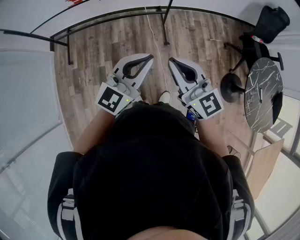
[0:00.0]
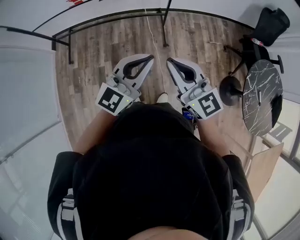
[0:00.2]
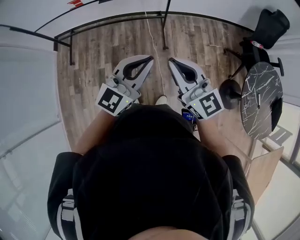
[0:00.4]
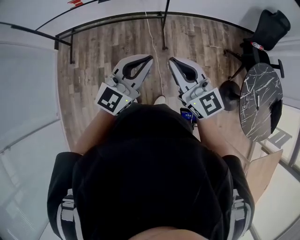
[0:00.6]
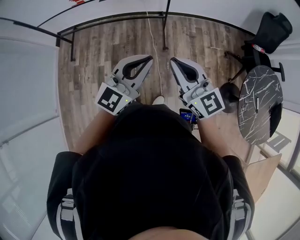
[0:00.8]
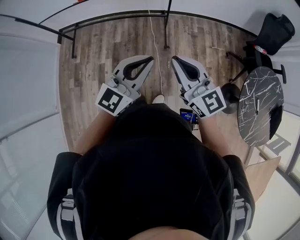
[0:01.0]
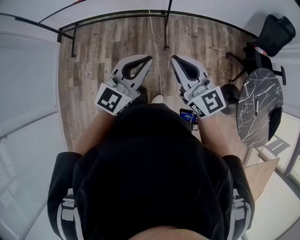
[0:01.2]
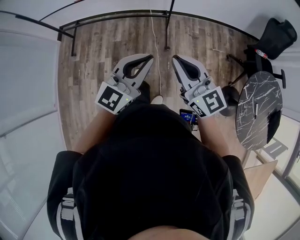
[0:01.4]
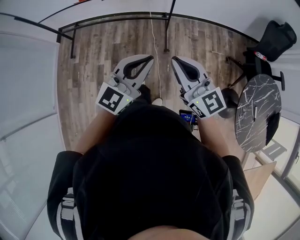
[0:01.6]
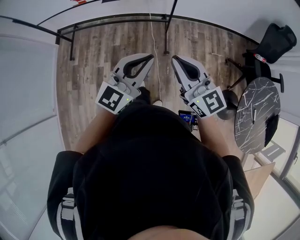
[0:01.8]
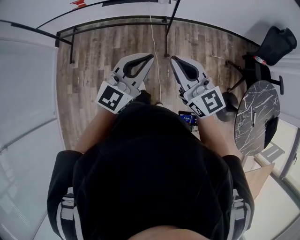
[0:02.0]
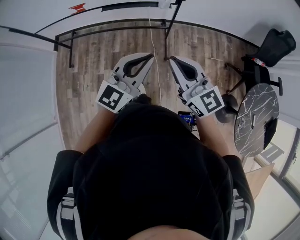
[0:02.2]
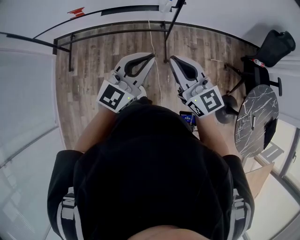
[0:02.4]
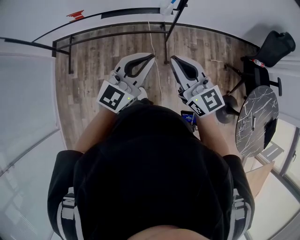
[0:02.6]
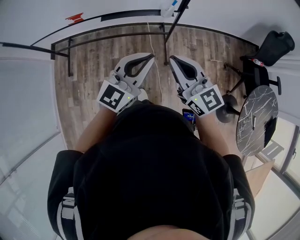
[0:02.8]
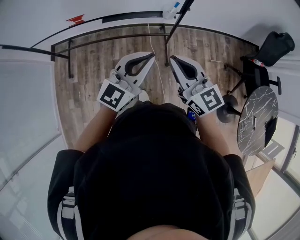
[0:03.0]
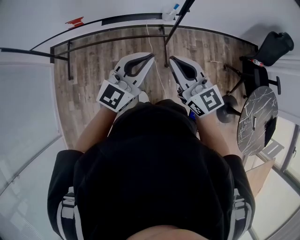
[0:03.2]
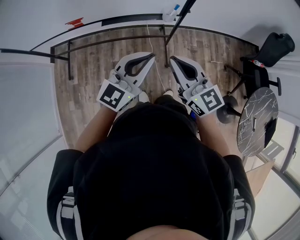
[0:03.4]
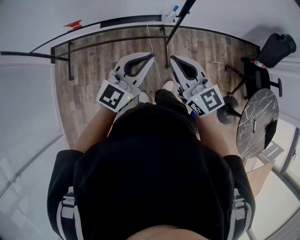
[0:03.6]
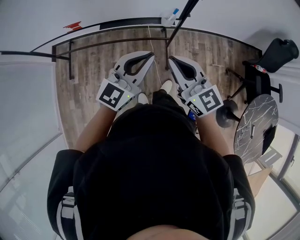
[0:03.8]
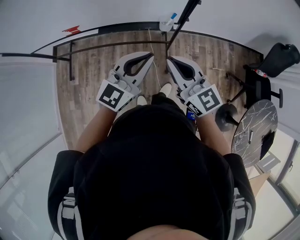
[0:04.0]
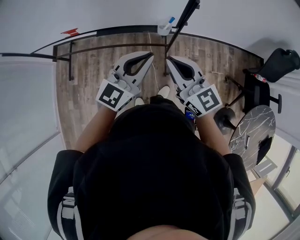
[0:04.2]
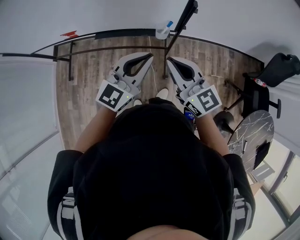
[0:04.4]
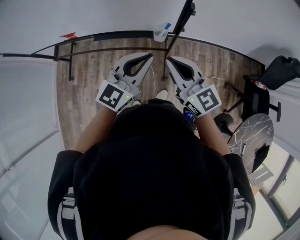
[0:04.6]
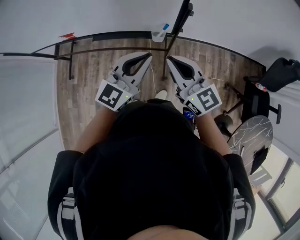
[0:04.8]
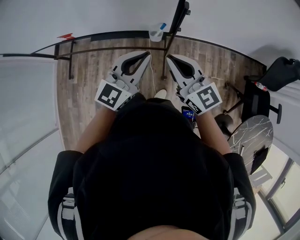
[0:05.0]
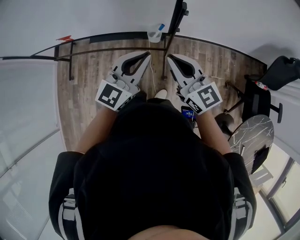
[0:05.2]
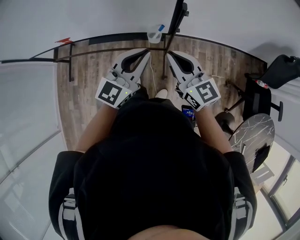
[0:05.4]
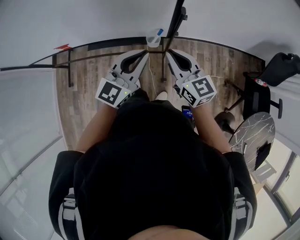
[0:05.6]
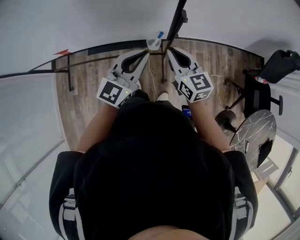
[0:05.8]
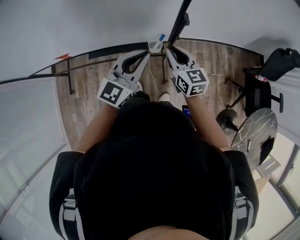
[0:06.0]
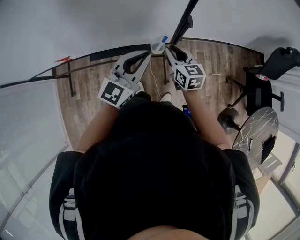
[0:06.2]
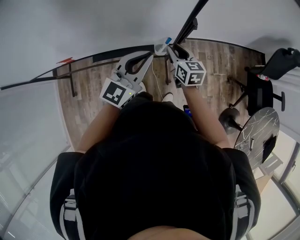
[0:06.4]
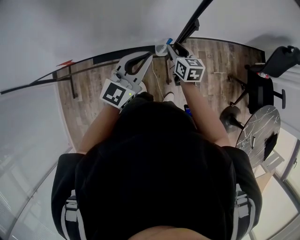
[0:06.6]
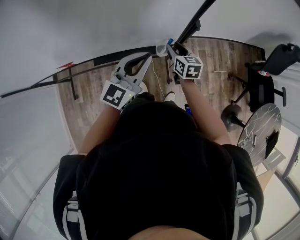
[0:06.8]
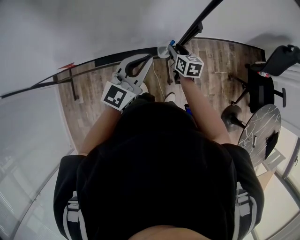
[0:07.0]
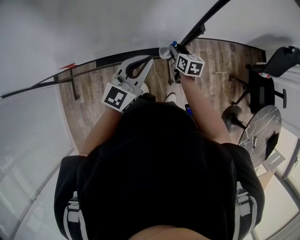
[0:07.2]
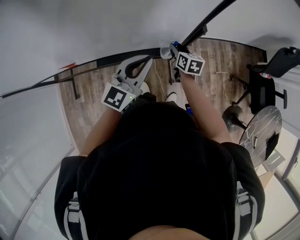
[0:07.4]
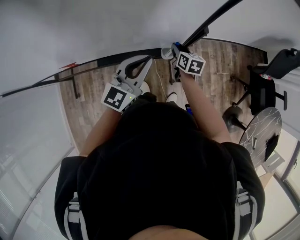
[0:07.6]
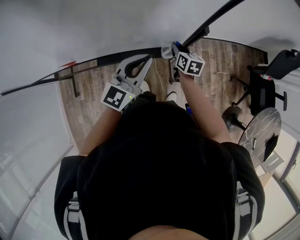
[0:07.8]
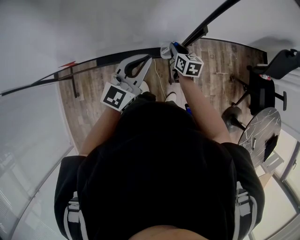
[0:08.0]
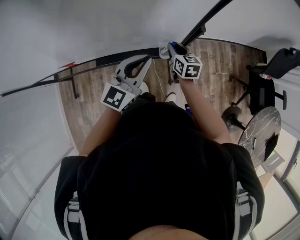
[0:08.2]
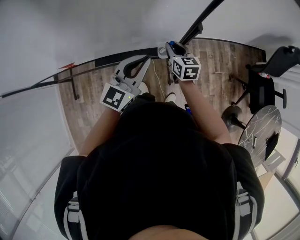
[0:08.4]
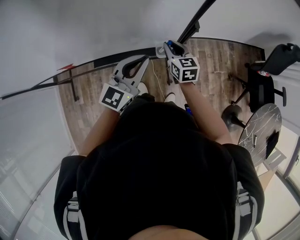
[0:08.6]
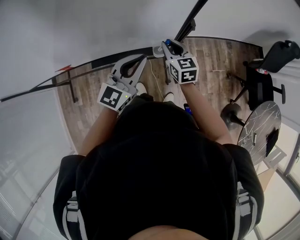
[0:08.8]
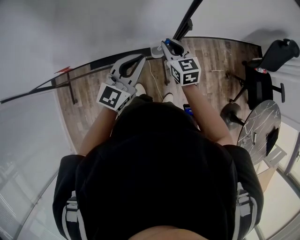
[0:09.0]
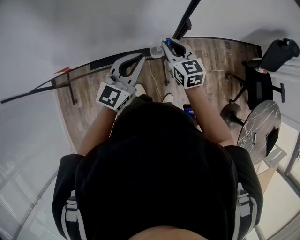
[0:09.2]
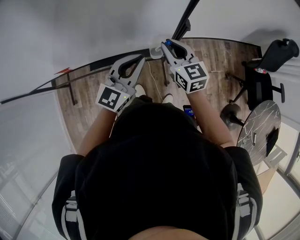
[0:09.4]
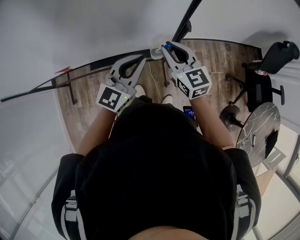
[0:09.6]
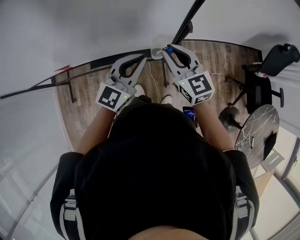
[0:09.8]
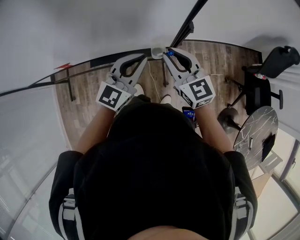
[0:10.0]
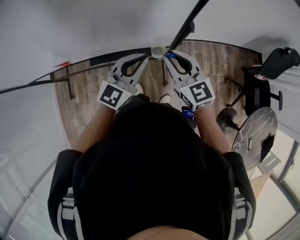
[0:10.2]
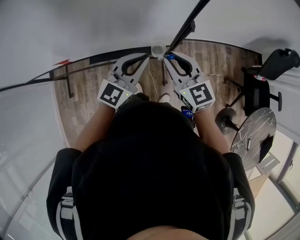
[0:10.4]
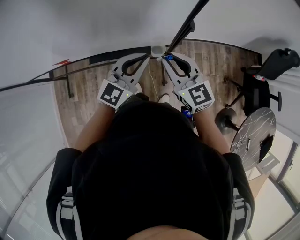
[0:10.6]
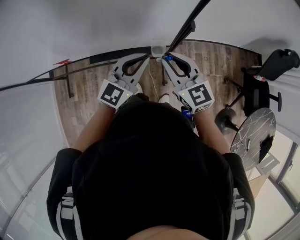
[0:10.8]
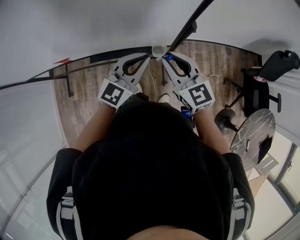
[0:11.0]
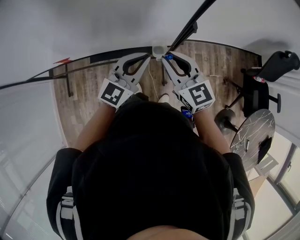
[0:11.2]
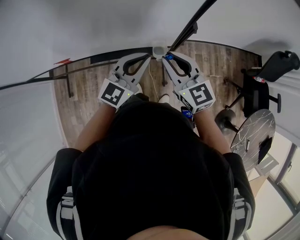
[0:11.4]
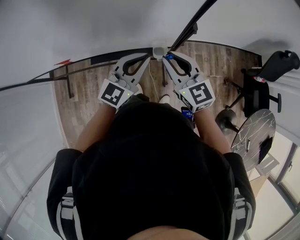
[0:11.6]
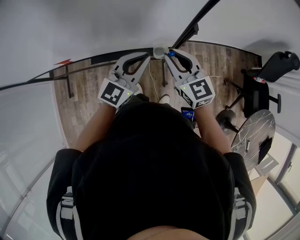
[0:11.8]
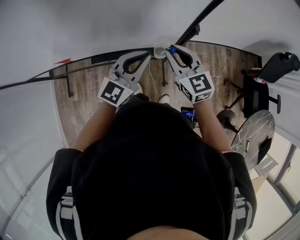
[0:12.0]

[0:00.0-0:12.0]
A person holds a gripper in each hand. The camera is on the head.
0:00.0 to 0:01.6: Both grippers travel together to the right, approximately 10 cm.
0:01.6 to 0:03.0: The two grippers go roughly 25 cm forward and to the left.
0:03.0 to 0:04.4: The two grippers go approximately 15 cm forward and to the right.
0:04.4 to 0:06.0: The left gripper shifts roughly 10 cm forward. Meanwhile the right gripper moves forward and downward, some 20 cm, and swivels about 20 degrees.
0:06.0 to 0:07.6: The left gripper heads to the left, covering about 5 cm. The right gripper travels downward and forward by roughly 15 cm, and swivels some 30 degrees.
0:07.6 to 0:09.0: The right gripper is displaced upward by some 10 cm, and swivels some 30 degrees.
0:09.0 to 0:10.4: The right gripper goes some 10 cm upward and backward.
0:10.4 to 0:12.0: The grippers make only small movements.

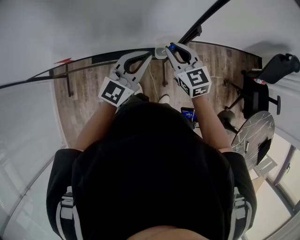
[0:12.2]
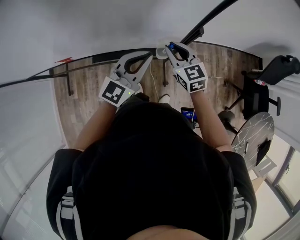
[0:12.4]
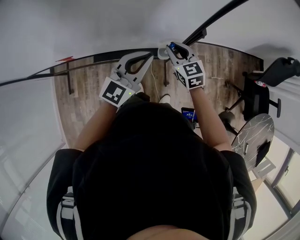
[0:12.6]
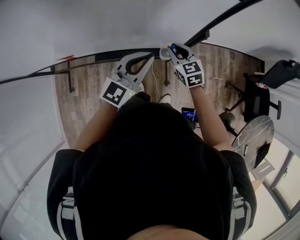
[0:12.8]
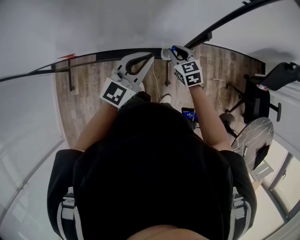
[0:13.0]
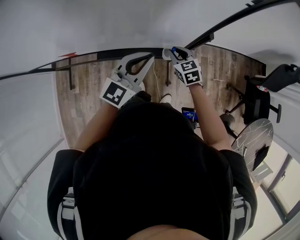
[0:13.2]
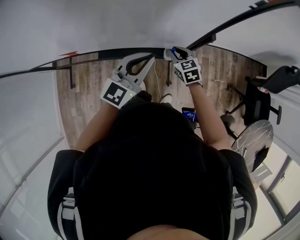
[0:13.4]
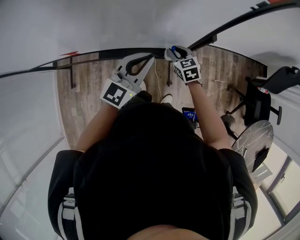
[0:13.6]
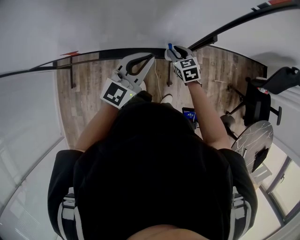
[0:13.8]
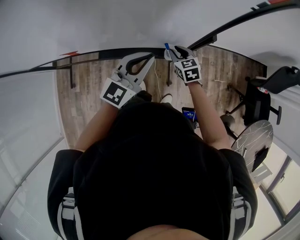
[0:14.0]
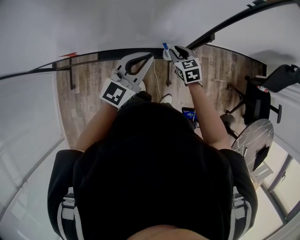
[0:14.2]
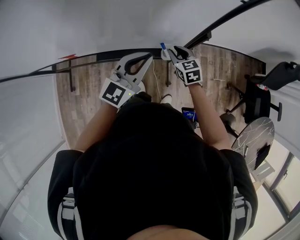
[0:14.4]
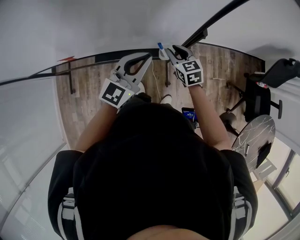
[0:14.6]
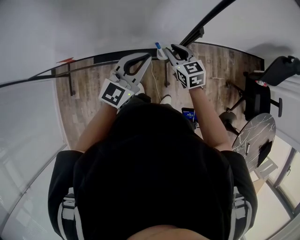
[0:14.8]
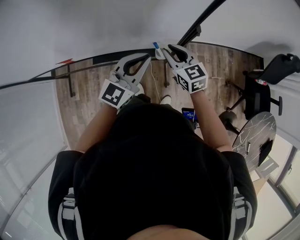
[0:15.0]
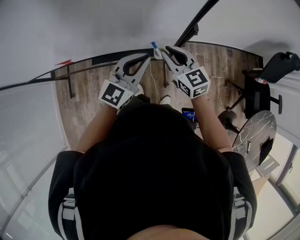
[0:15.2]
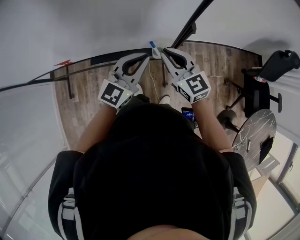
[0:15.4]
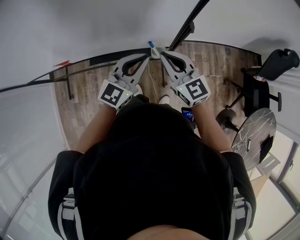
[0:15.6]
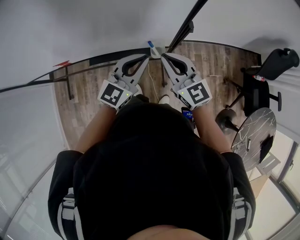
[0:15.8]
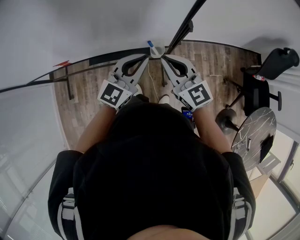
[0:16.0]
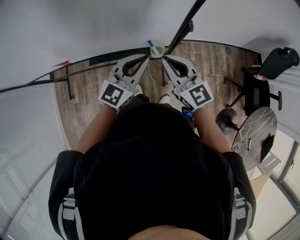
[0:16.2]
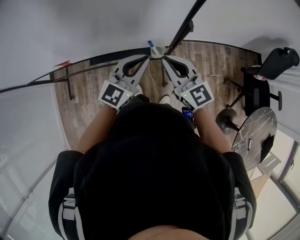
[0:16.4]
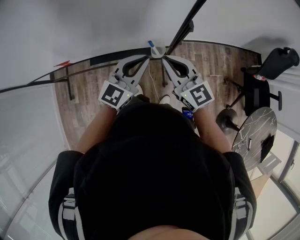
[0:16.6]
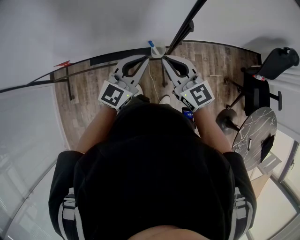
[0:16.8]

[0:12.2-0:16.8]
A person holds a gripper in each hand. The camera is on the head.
0:12.2 to 0:13.8: The right gripper heads downward, covering approximately 15 cm, and turns by some 20 degrees.
0:13.8 to 0:15.2: The right gripper heads upward, covering roughly 15 cm, and rotates roughly 20 degrees.
0:15.2 to 0:16.8: The right gripper ends up approximately 5 cm from where it was.

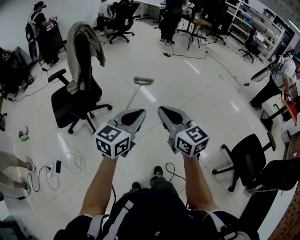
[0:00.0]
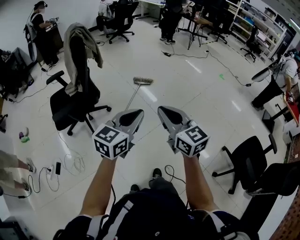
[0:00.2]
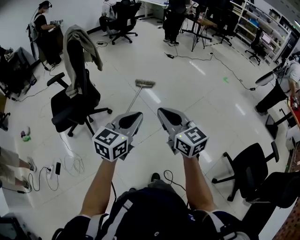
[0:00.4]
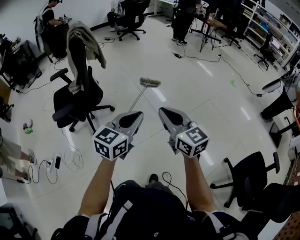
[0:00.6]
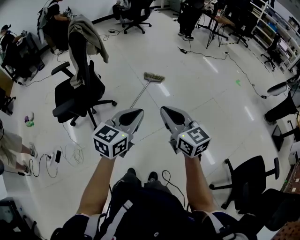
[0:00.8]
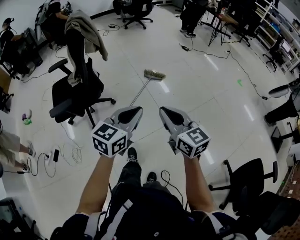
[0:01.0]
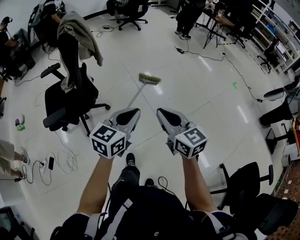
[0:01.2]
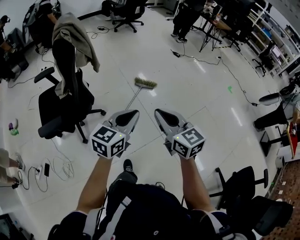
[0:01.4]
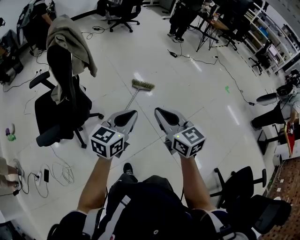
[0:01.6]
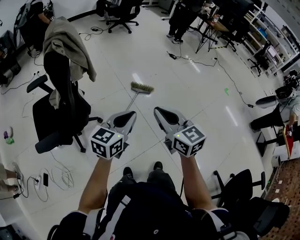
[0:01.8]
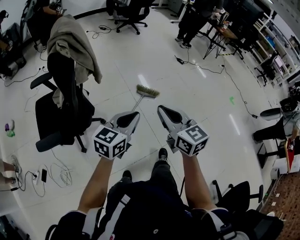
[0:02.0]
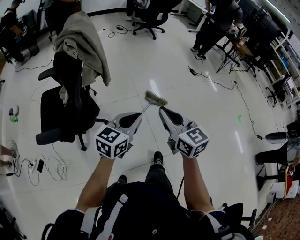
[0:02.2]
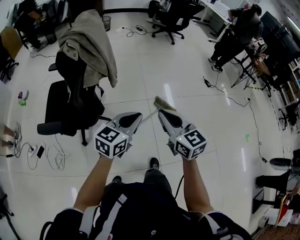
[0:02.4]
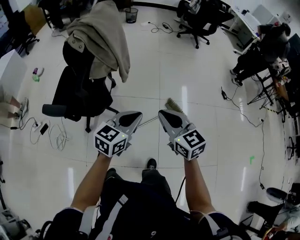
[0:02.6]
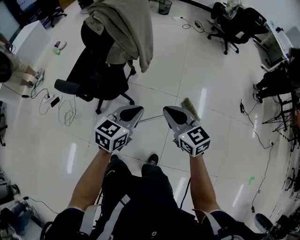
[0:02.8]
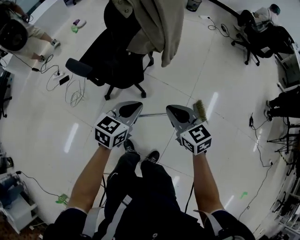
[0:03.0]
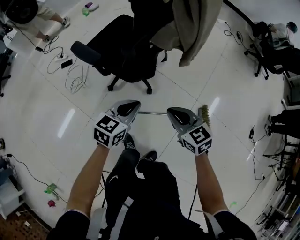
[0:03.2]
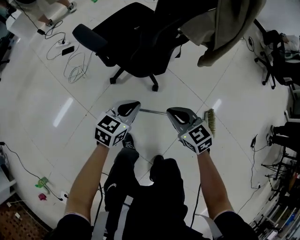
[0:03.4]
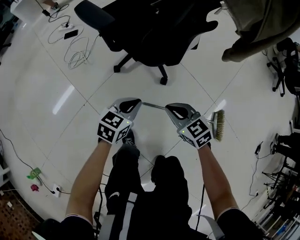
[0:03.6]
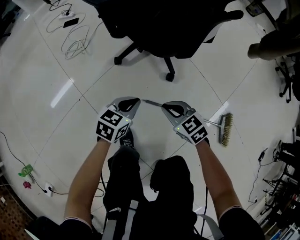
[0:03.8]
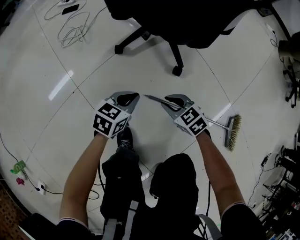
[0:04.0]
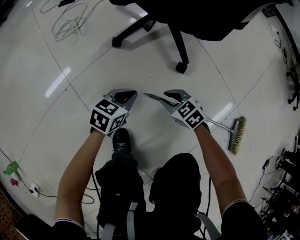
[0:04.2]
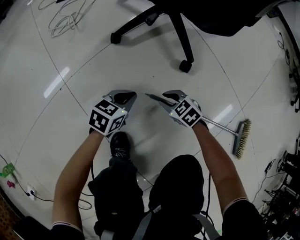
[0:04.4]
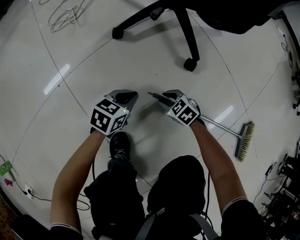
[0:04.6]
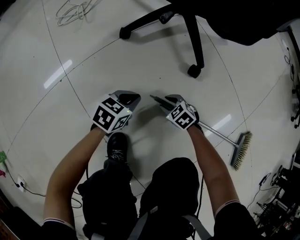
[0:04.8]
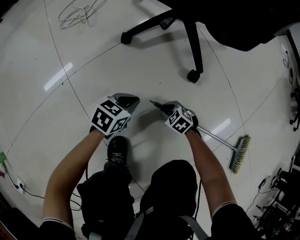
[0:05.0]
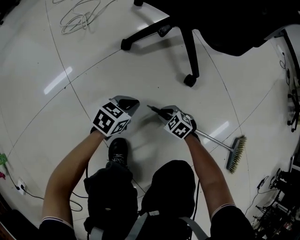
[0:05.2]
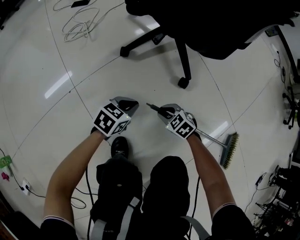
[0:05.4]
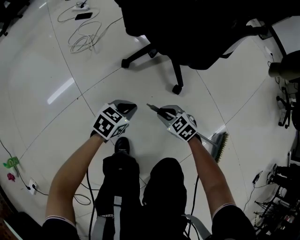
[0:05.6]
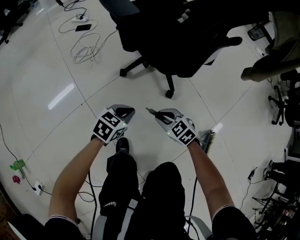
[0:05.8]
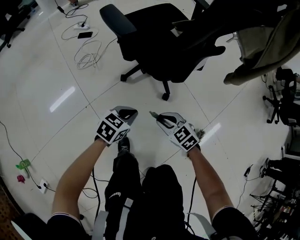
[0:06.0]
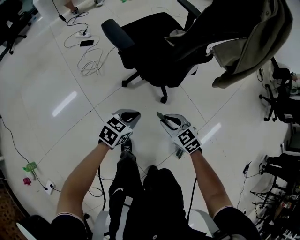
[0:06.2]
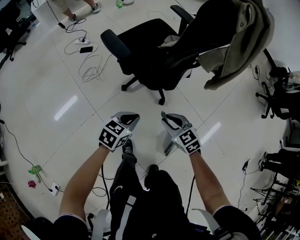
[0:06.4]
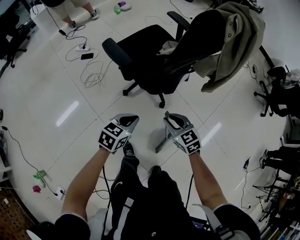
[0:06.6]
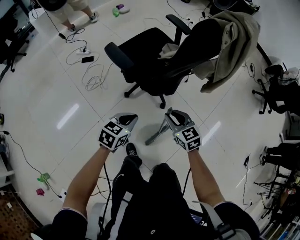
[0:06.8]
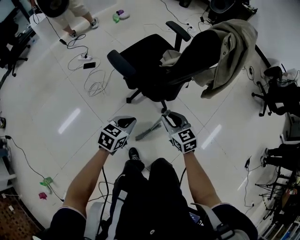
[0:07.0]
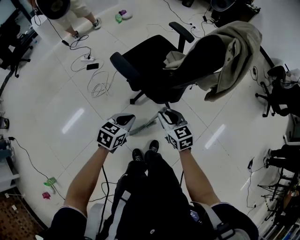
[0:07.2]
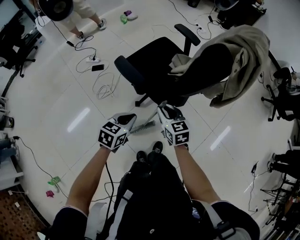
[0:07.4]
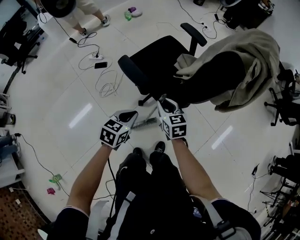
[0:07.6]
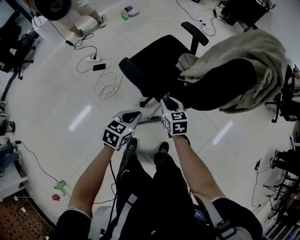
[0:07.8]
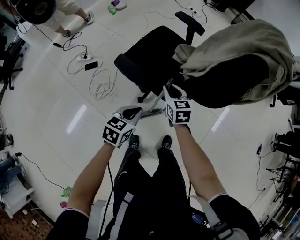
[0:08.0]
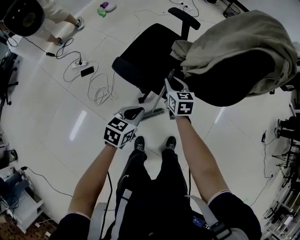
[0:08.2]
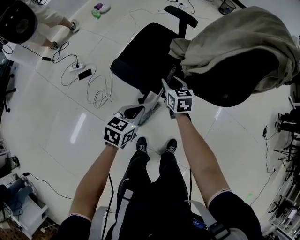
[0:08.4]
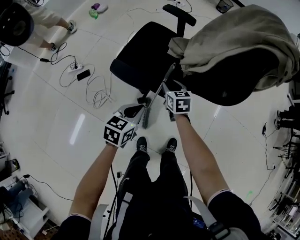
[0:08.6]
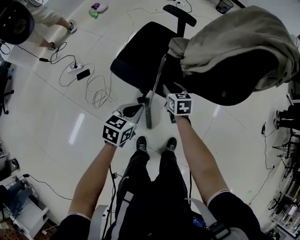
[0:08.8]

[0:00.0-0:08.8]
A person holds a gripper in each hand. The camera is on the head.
0:00.0 to 0:01.4: Both grippers move forward, about 30 cm.
0:01.4 to 0:03.0: The left gripper shifts by approximately 25 cm, and swivels some 50 degrees; the right gripper changes place by about 35 cm, and swivels about 60 degrees.
0:03.0 to 0:04.4: The grippers both shift downward by roughly 70 cm. The left gripper turns by about 30 degrees; the right gripper turns by roughly 50 degrees, and opens.
0:04.4 to 0:05.8: The grippers both shift upward by some 25 cm.
0:05.8 to 0:07.4: The left gripper moves upward, about 30 cm, while the right gripper heads upward and forward, covering approximately 40 cm, and rotates about 40 degrees.
0:07.4 to 0:08.8: The right gripper shifts some 15 cm forward, downward and to the left, and swivels roughly 30 degrees, while the left gripper heads to the left and forward, covering about 10 cm.
